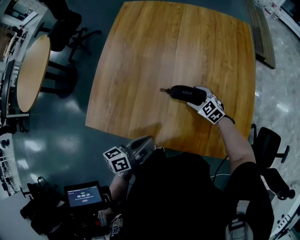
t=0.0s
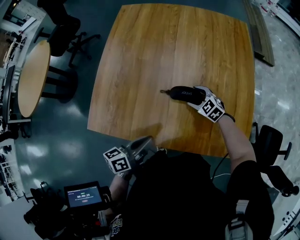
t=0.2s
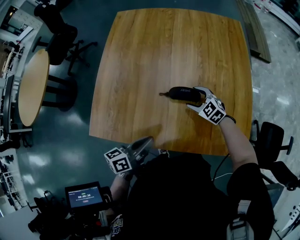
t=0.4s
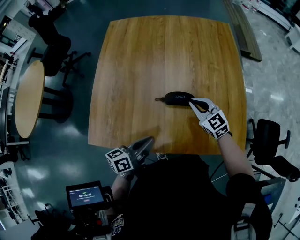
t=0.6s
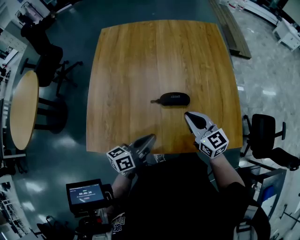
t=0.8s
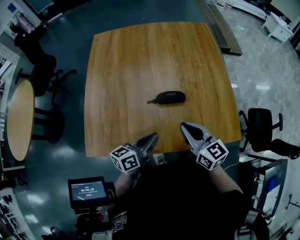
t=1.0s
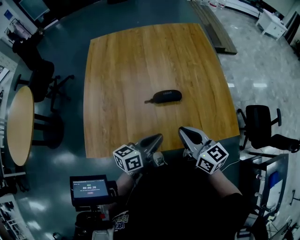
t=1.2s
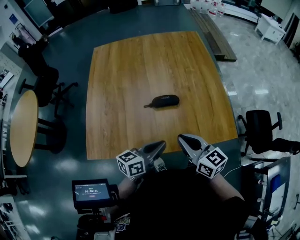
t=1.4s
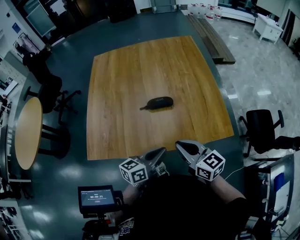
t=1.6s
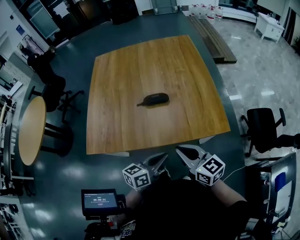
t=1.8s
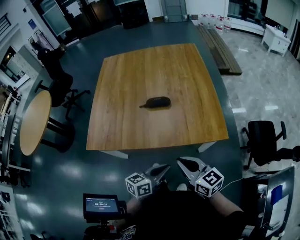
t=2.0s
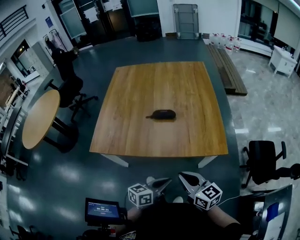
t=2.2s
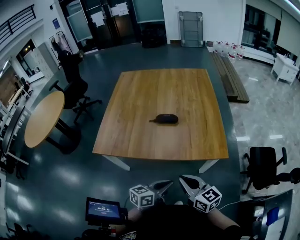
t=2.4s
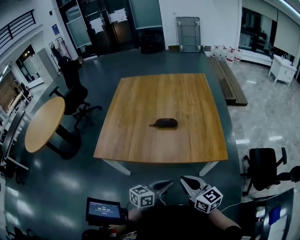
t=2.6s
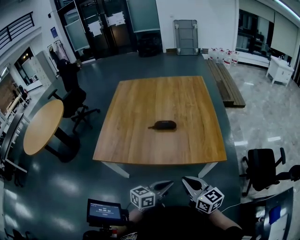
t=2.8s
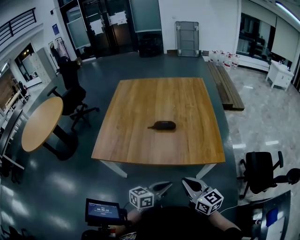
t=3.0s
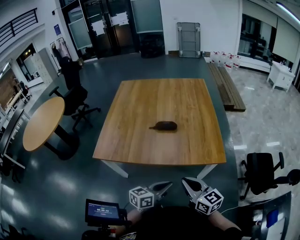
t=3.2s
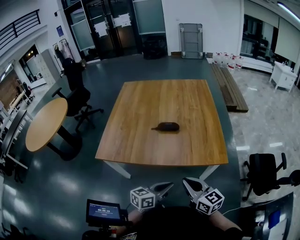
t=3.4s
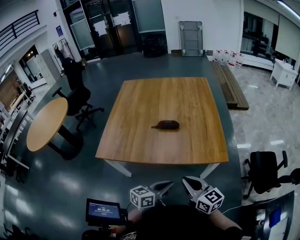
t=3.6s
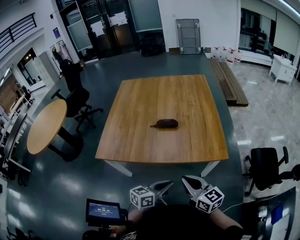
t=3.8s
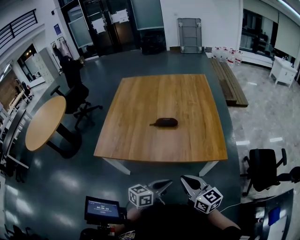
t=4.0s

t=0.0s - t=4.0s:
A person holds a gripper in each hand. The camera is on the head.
t=0.0s - t=1.4s: The right gripper heads upward and backward, covering approximately 30 cm, tips its fingers upward by some 30 degrees, and closes its fingers. The left gripper goes some 10 cm to the right, and turns by some 30 degrees.
t=1.4s - t=2.6s: The two grippers go roughly 20 cm backward and to the right.
t=2.6s - t=4.0s: The grippers stay close to where they were, moving slightly.

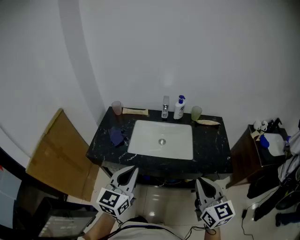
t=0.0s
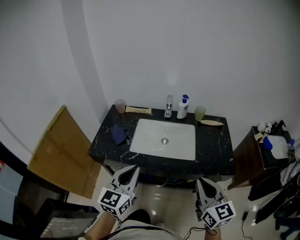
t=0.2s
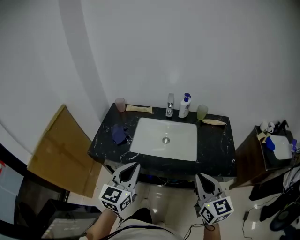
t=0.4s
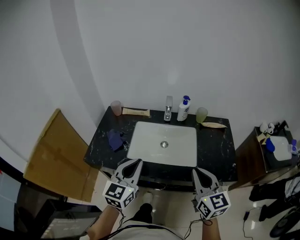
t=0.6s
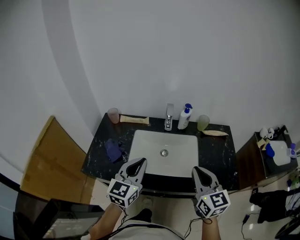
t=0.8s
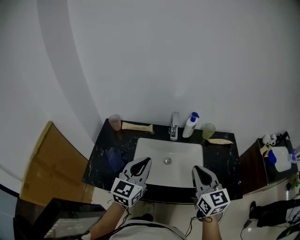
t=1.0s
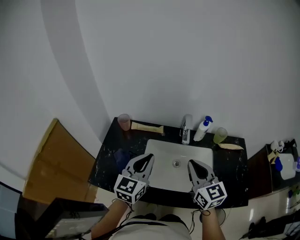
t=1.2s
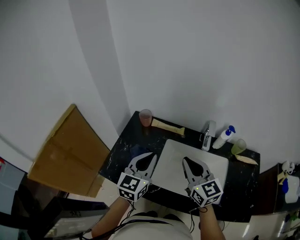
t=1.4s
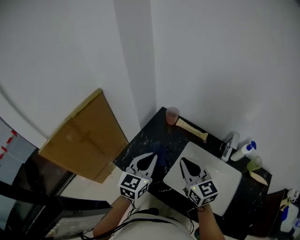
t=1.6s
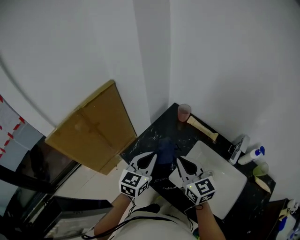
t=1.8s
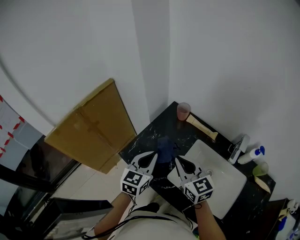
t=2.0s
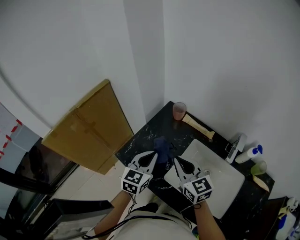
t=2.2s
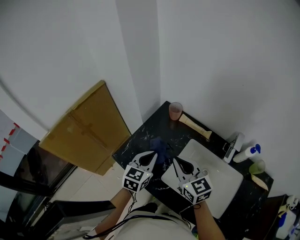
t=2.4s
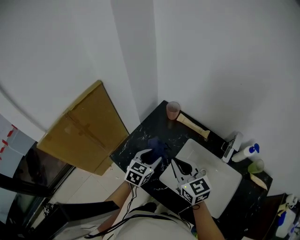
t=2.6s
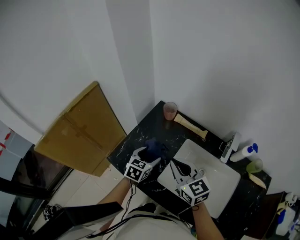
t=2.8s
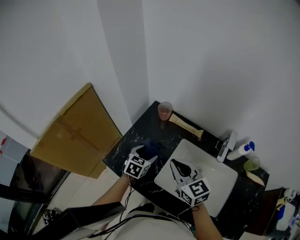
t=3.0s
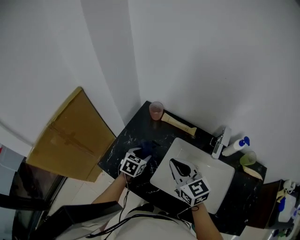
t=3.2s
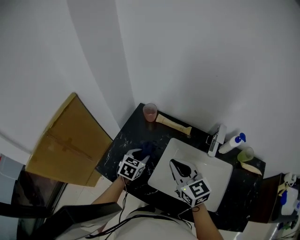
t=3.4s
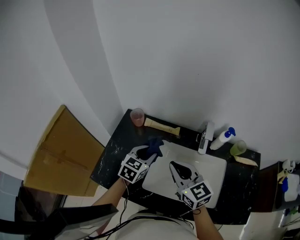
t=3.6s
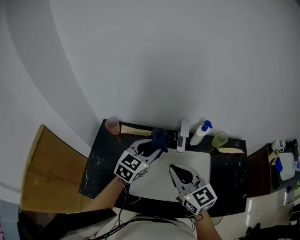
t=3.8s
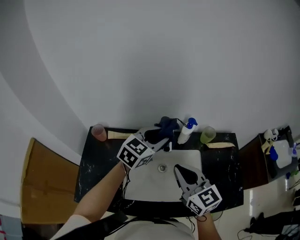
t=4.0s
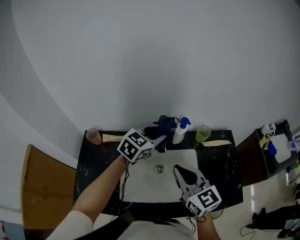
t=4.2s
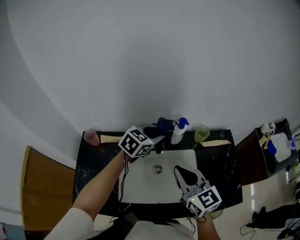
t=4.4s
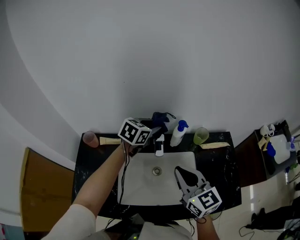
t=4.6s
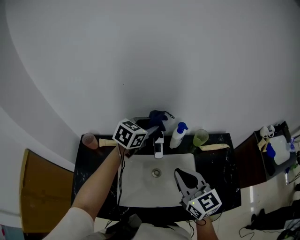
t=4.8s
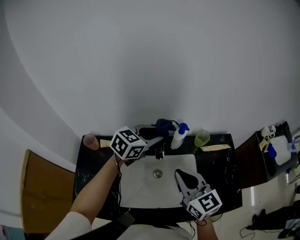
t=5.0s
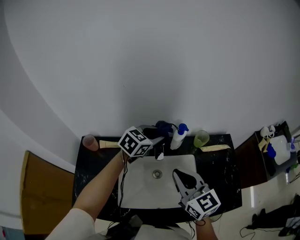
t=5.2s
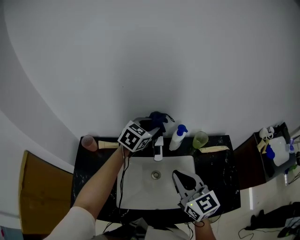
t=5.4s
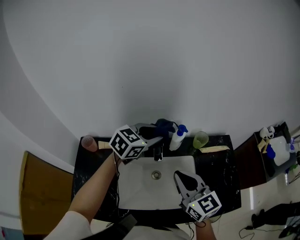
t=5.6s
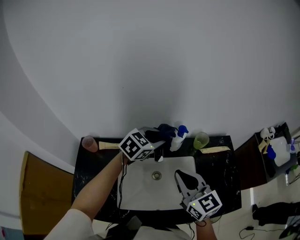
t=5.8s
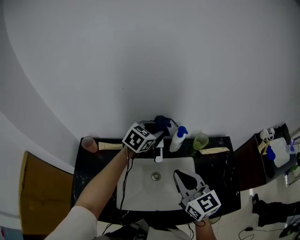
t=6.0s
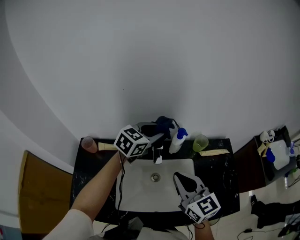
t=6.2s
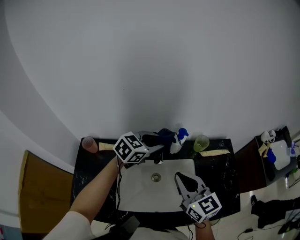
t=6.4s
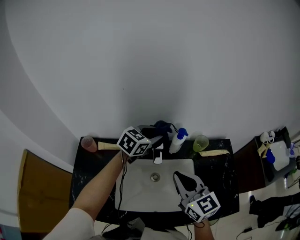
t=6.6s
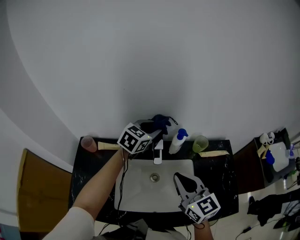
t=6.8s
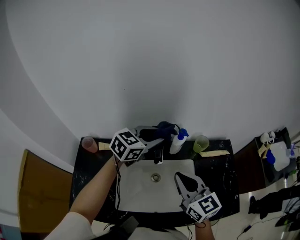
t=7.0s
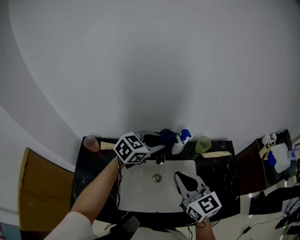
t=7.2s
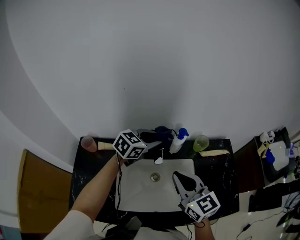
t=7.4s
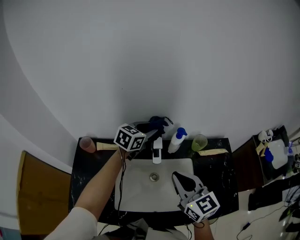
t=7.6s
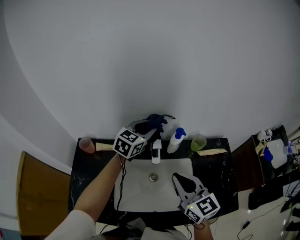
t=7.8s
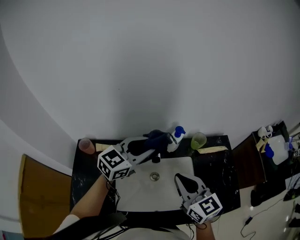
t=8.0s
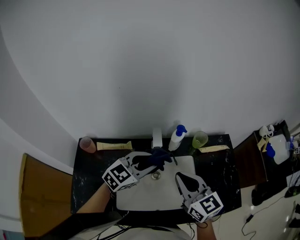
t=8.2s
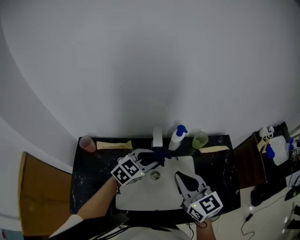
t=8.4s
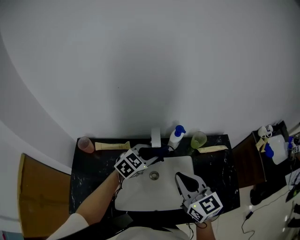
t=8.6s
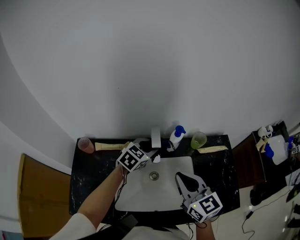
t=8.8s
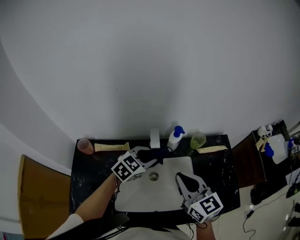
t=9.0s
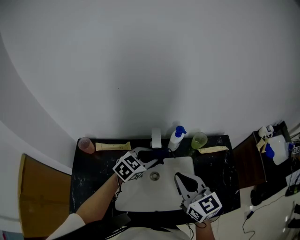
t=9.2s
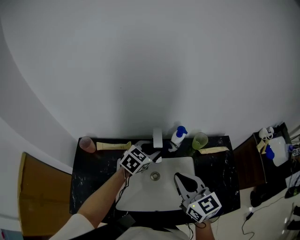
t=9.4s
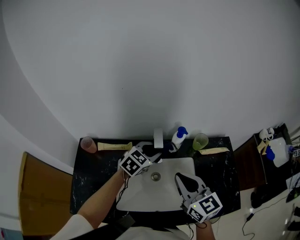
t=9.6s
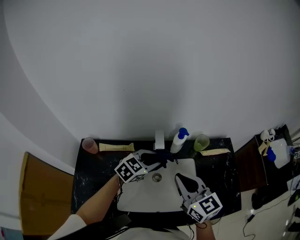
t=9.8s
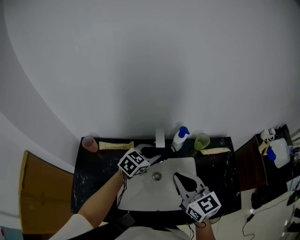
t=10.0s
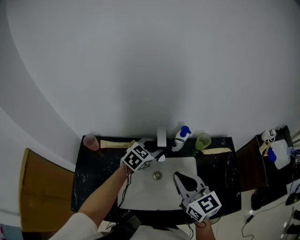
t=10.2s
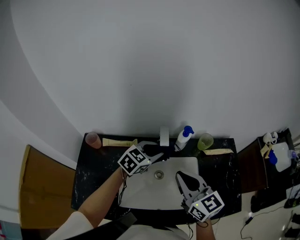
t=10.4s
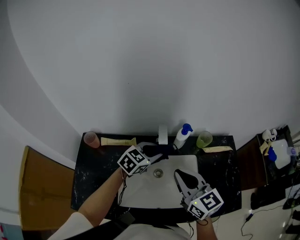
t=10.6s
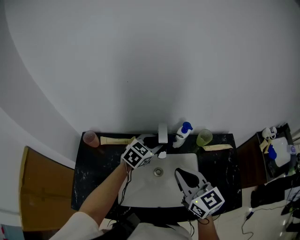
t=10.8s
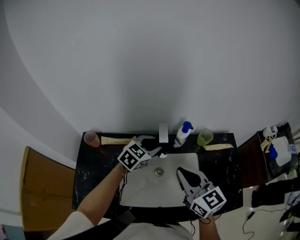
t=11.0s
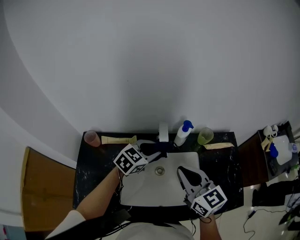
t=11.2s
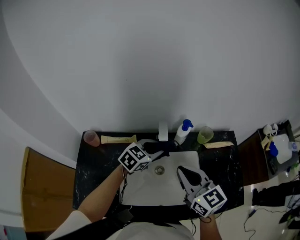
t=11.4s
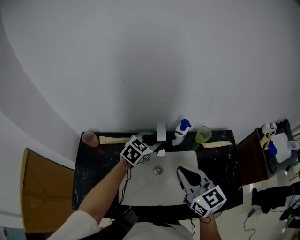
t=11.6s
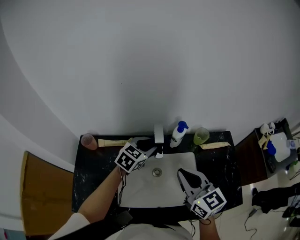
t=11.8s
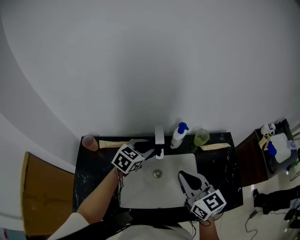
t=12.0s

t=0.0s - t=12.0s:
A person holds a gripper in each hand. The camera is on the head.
t=0.0s - t=1.6s: The left gripper shifts by roughly 35 cm, and changes its angle by approximately 20 degrees; the right gripper changes place by roughly 50 cm, and swivels roughly 30 degrees.
t=1.6s - t=3.0s: The left gripper shifts roughly 20 cm downward and forward, tips its fingers downward by roughly 30 degrees, and opens its fingers.
t=3.0s - t=4.4s: The left gripper ends up approximately 40 cm from where it was, rotates roughly 60 degrees, and closes up. Meanwhile the right gripper ends up about 25 cm from where it was, and swivels some 40 degrees.
t=4.4s - t=6.0s: The left gripper moves forward and backward over approximately 5 cm, changing direction 4 times.
t=6.0s - t=7.6s: The left gripper goes forward and backward, about 5 cm each way, reversing 3 times.
t=7.6s - t=9.0s: The left gripper goes forward and backward, about 15 cm each way, reversing 2 times.
t=9.0s - t=10.4s: The left gripper goes forward and backward, roughly 5 cm each way, reversing 2 times.
t=10.4s - t=12.0s: The grippers make only small movements.

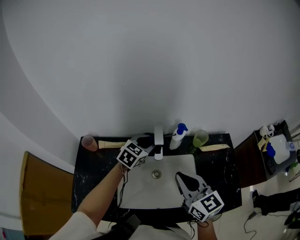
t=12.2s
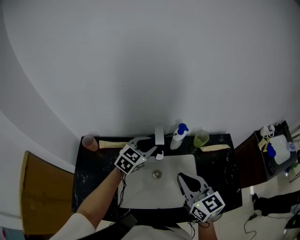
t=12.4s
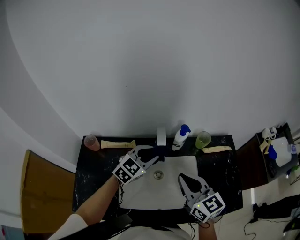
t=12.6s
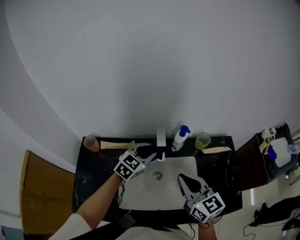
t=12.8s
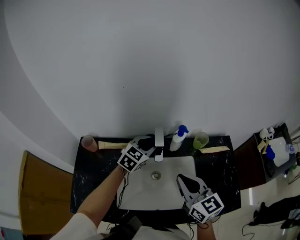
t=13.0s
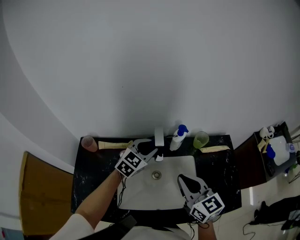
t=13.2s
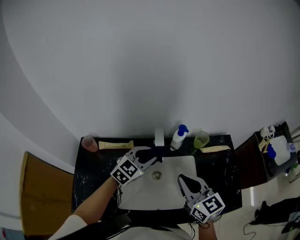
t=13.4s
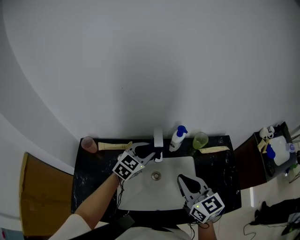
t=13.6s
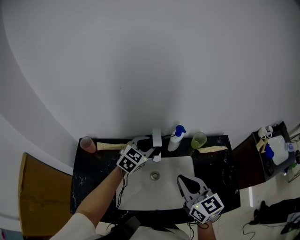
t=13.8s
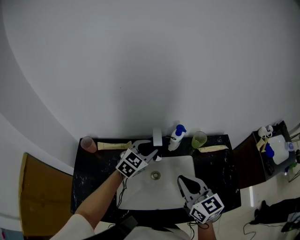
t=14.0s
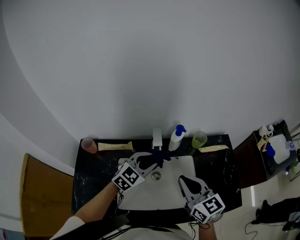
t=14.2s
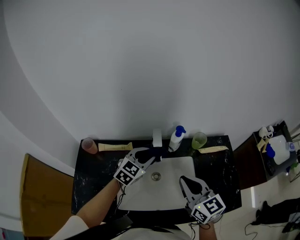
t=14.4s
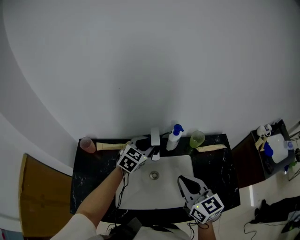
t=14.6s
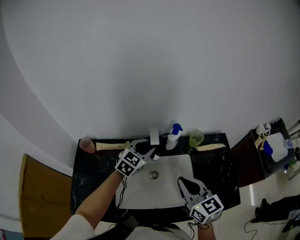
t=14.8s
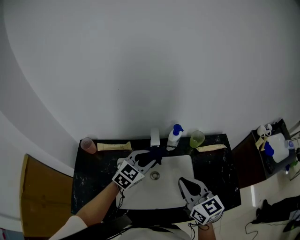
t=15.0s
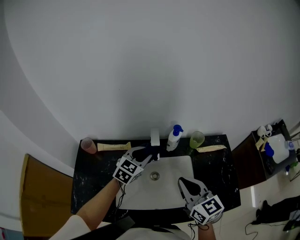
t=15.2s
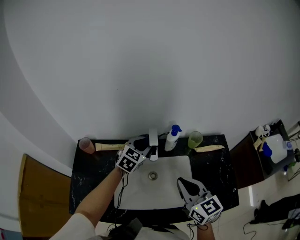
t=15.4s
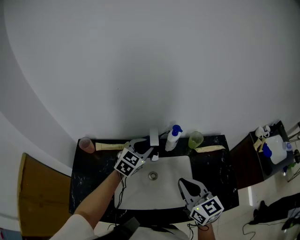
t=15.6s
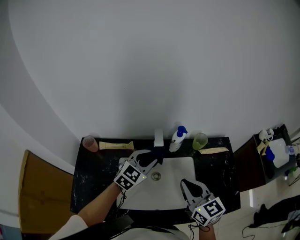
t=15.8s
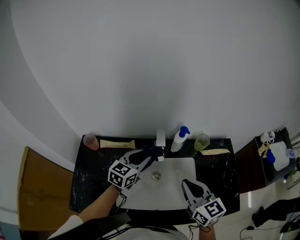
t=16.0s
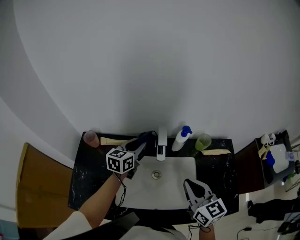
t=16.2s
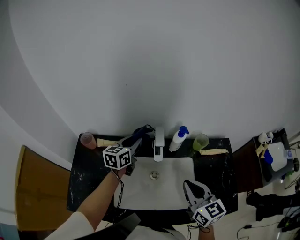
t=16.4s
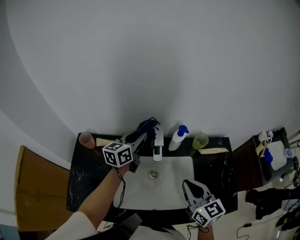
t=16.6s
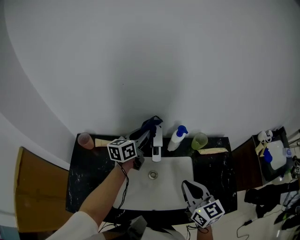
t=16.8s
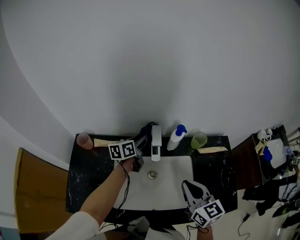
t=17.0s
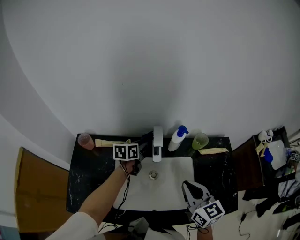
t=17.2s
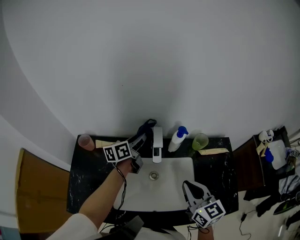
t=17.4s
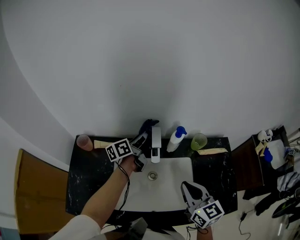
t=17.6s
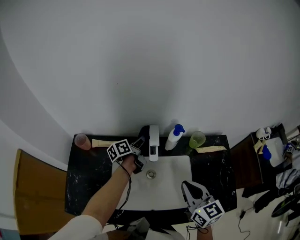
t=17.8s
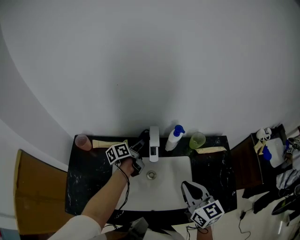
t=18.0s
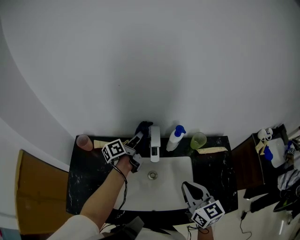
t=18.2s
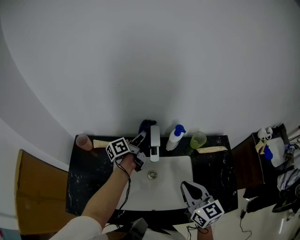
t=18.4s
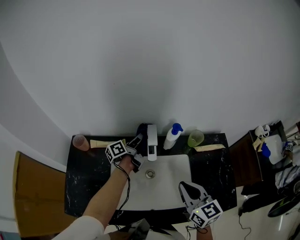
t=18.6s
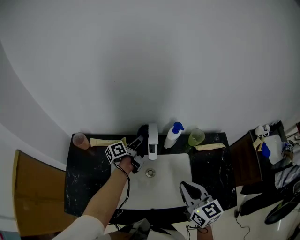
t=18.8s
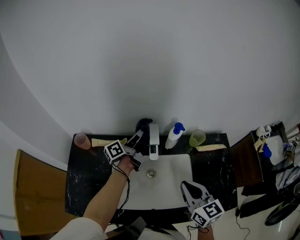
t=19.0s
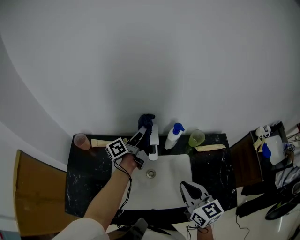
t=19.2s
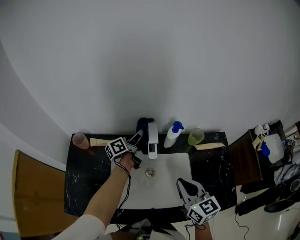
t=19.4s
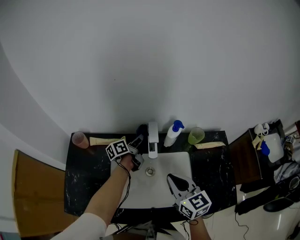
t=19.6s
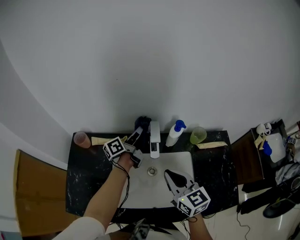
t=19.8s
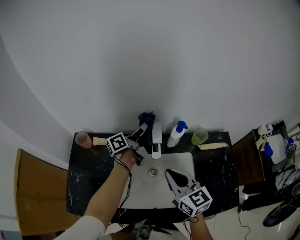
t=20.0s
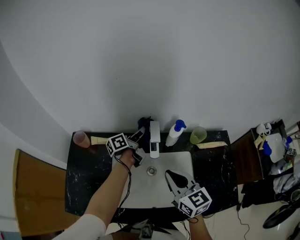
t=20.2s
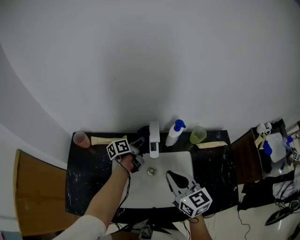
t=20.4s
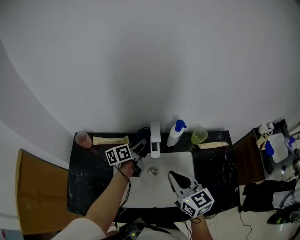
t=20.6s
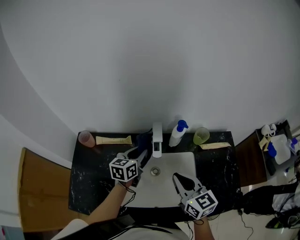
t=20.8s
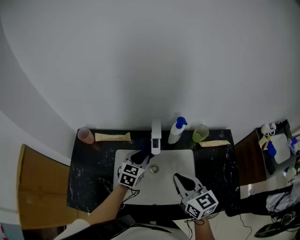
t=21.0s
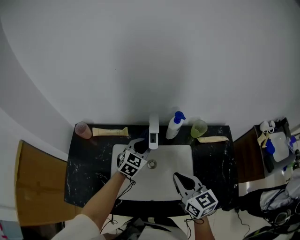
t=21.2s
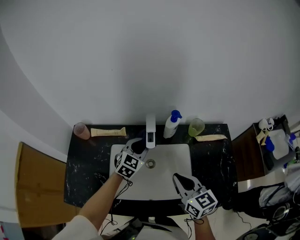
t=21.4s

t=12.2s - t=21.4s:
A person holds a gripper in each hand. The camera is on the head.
t=12.2s - t=13.8s: The left gripper swings forward and backward, some 5 cm each way, with 3 reversals.
t=13.8s - t=15.2s: The left gripper swings forward and backward, about 10 cm each way, with 2 reversals.
t=15.2s - t=16.8s: The left gripper moves forward and backward over some 10 cm, changing direction 2 times, and rotates approximately 40 degrees.
t=16.8s - t=18.4s: The left gripper swings up and down, about 10 cm each way, with 3 reversals, and rolls counterclockwise, seen from behind, by some 40 degrees.
t=18.4s - t=19.8s: The left gripper moves up and down over roughly 15 cm, changing direction 3 times, while the right gripper moves to the left, roughly 5 cm.
t=19.8s - t=21.4s: The right gripper is displaced to the right and backward by roughly 10 cm. The left gripper heads backward and downward, covering approximately 10 cm, and rolls clockwise, seen from behind, by roughly 80 degrees.
